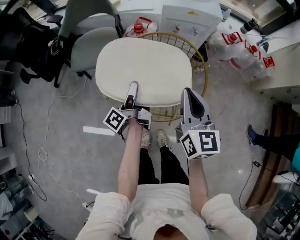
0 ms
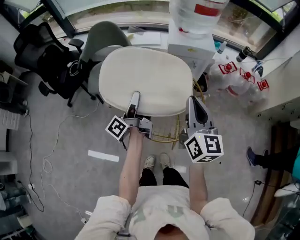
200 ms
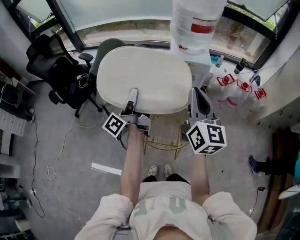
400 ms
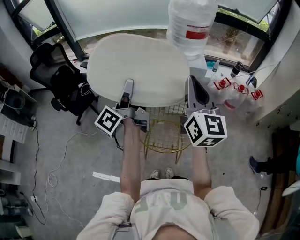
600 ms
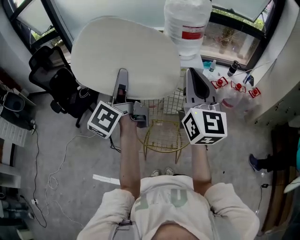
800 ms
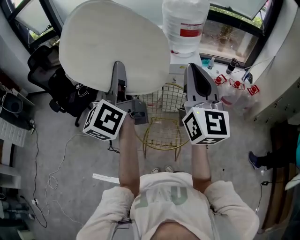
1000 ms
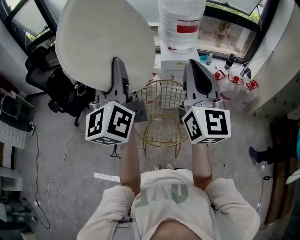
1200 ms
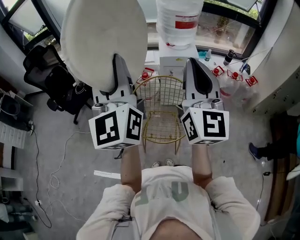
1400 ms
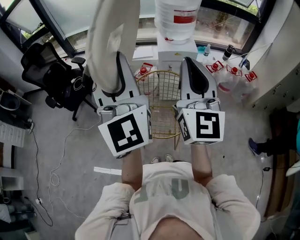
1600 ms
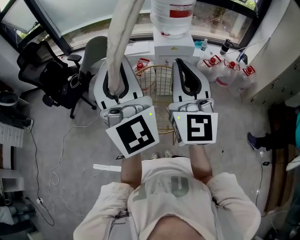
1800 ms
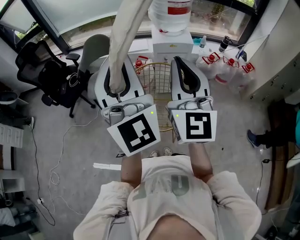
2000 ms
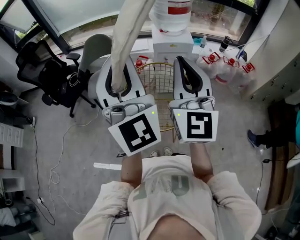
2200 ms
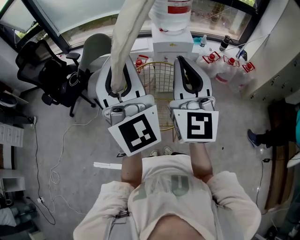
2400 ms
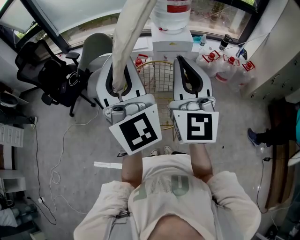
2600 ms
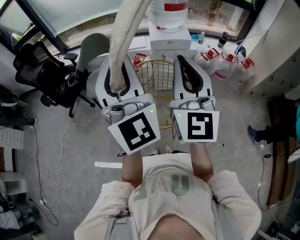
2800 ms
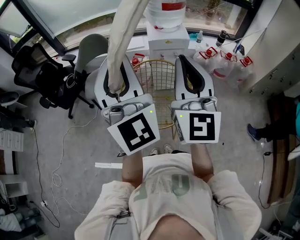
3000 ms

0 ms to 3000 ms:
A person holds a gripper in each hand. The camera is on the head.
0 ms to 1600 ms: The grippers both shift upward by roughly 40 cm. The left gripper rotates around the line of its fingers by roughly 100 degrees, clockwise from behind. The right gripper angles its fingers upward, by about 30 degrees.
1600 ms to 3000 ms: There are only small adjustments of the grippers.

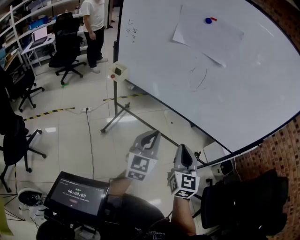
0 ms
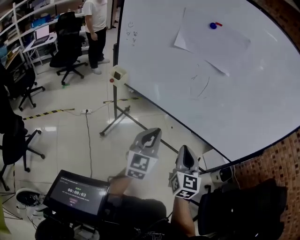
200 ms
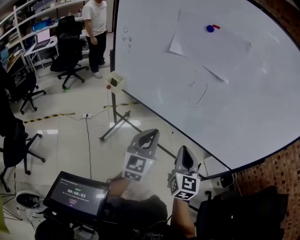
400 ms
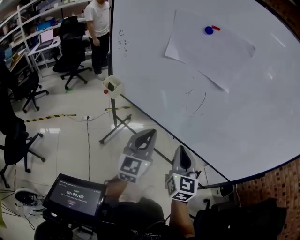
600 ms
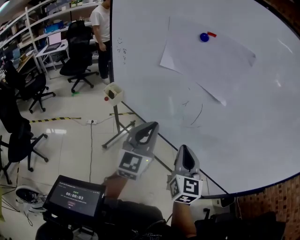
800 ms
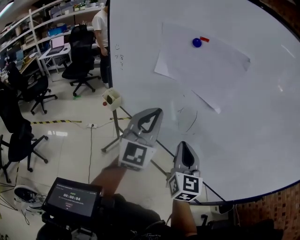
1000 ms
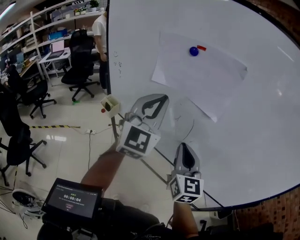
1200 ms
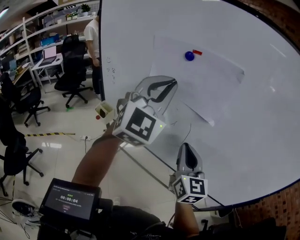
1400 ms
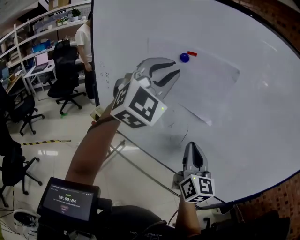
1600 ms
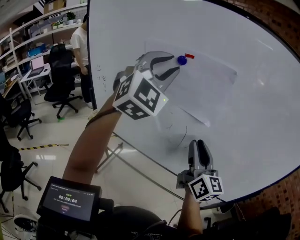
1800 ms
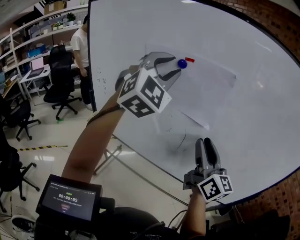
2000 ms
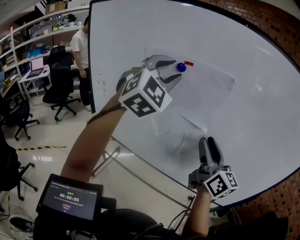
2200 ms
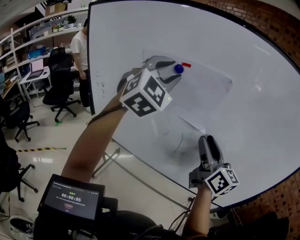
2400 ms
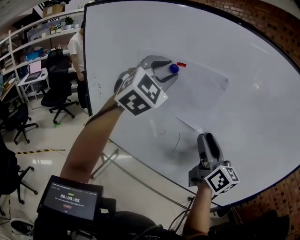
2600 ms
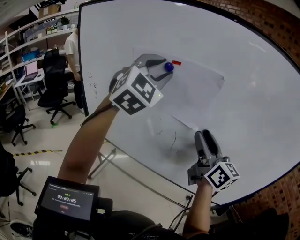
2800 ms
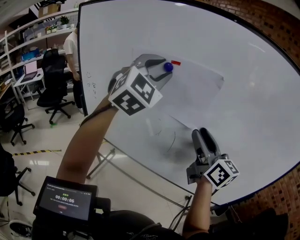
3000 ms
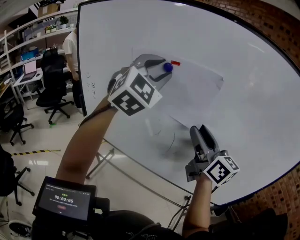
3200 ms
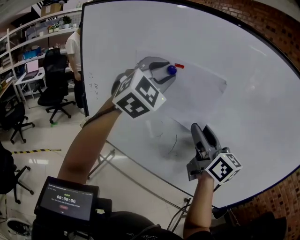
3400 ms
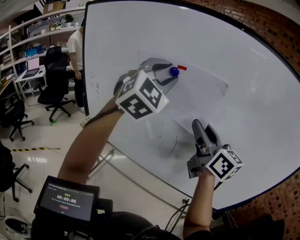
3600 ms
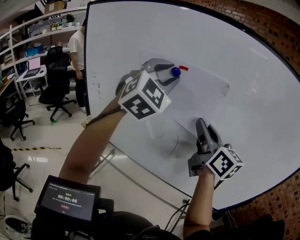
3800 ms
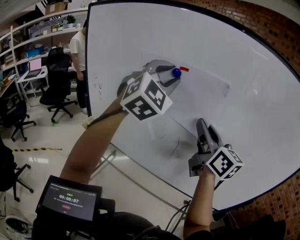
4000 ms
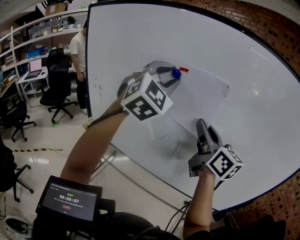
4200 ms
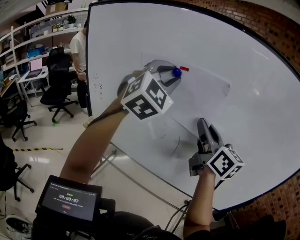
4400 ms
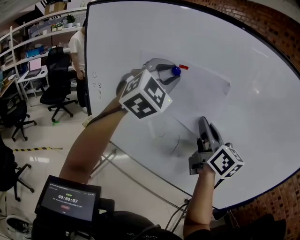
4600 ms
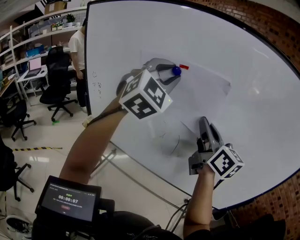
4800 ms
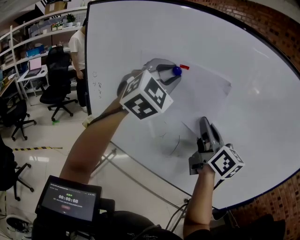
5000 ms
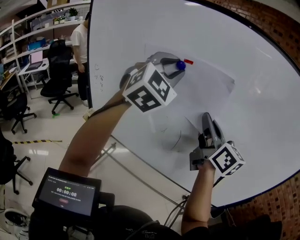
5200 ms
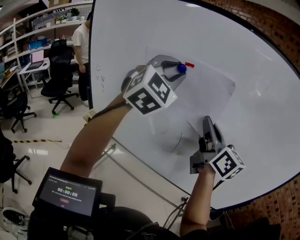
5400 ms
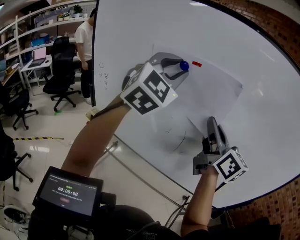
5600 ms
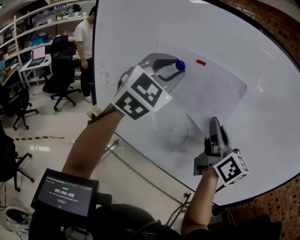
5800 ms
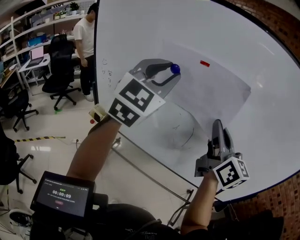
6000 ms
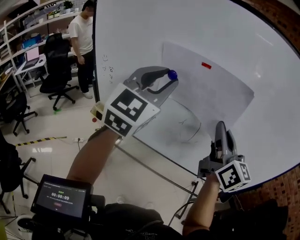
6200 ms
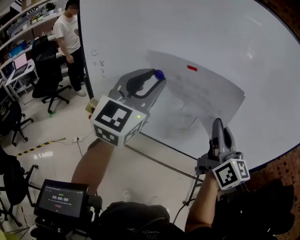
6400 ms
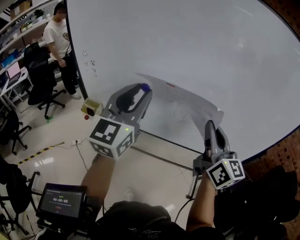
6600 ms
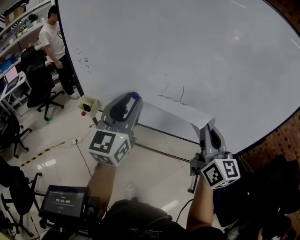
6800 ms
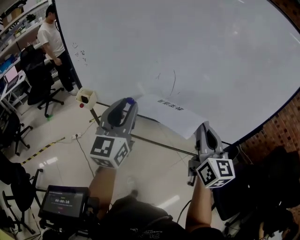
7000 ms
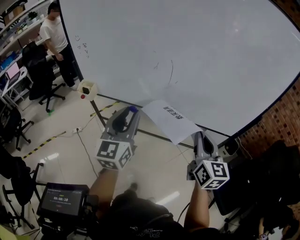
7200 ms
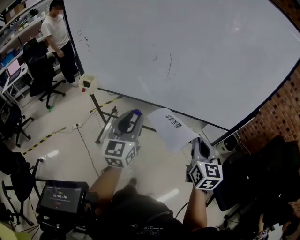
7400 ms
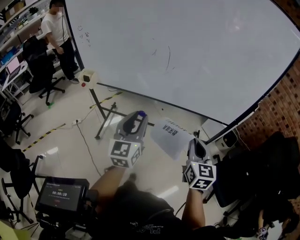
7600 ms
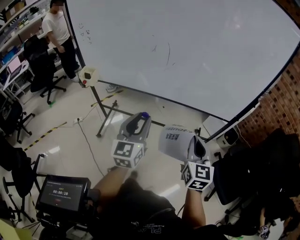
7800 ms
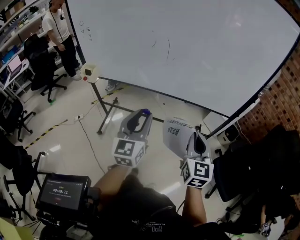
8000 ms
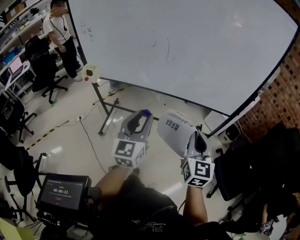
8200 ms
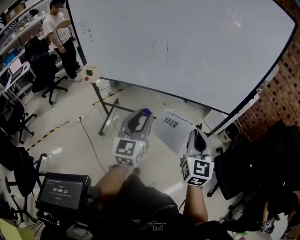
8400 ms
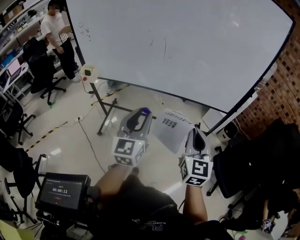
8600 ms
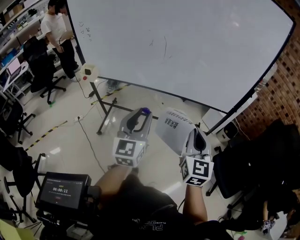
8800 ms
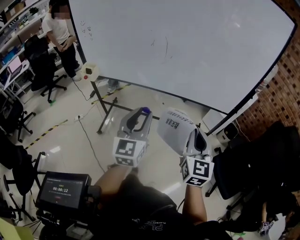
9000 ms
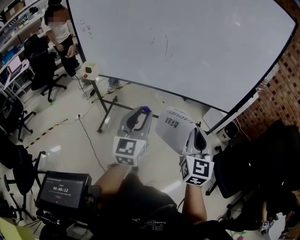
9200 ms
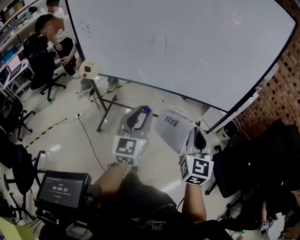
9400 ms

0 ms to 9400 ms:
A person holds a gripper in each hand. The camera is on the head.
0 ms to 1600 ms: The left gripper goes approximately 50 cm upward and forward, and rotates around the line of its fingers by about 50 degrees, clockwise from behind. Meanwhile the right gripper is displaced forward and upward by about 35 cm, and changes its angle by some 20 degrees.
1600 ms to 3200 ms: The right gripper shifts approximately 10 cm upward, and opens up.
3200 ms to 4800 ms: The right gripper closes up.
4800 ms to 6200 ms: The right gripper heads backward, covering approximately 5 cm; the left gripper heads to the left, downward and backward, covering about 10 cm, and rotates about 30 degrees.
6200 ms to 7800 ms: The right gripper goes roughly 40 cm backward and downward, and rotates roughly 40 degrees; the left gripper shifts about 40 cm downward and backward, and changes its angle by approximately 30 degrees.
7800 ms to 9400 ms: There are only small adjustments of the grippers.

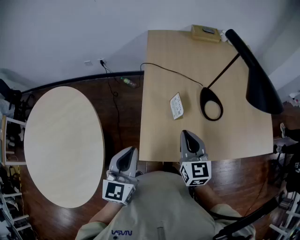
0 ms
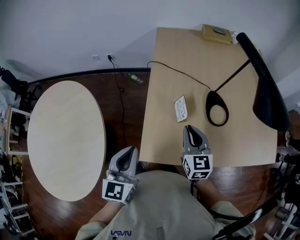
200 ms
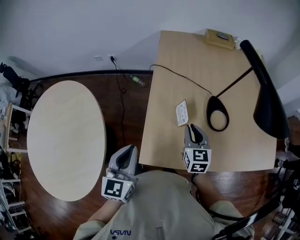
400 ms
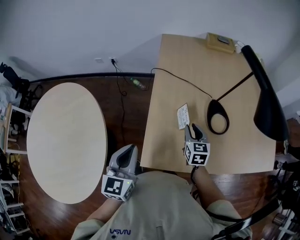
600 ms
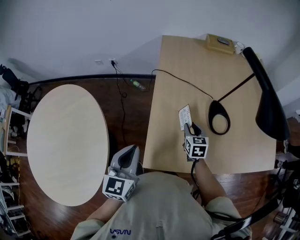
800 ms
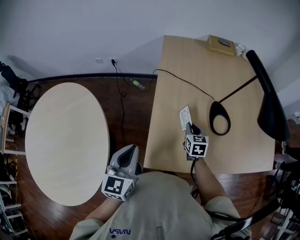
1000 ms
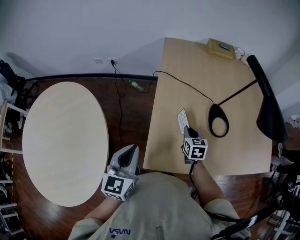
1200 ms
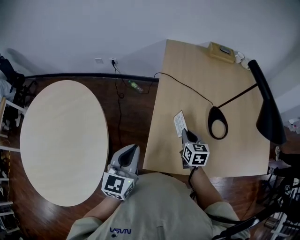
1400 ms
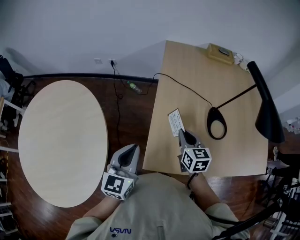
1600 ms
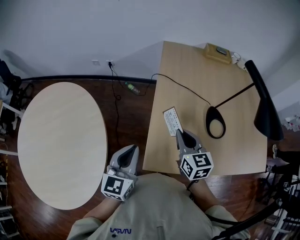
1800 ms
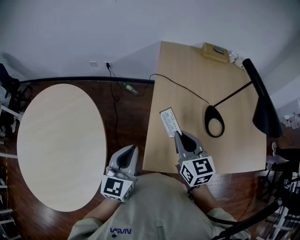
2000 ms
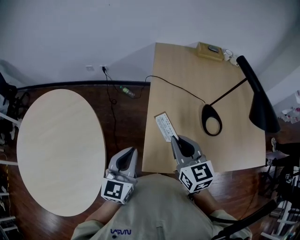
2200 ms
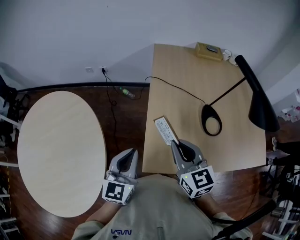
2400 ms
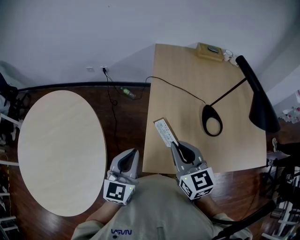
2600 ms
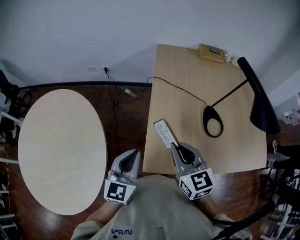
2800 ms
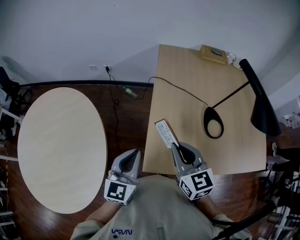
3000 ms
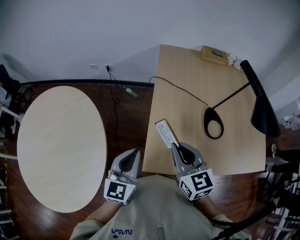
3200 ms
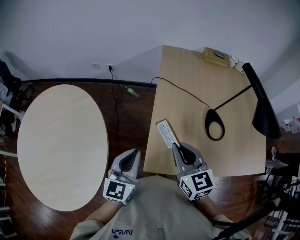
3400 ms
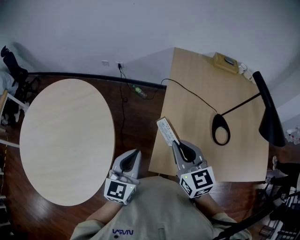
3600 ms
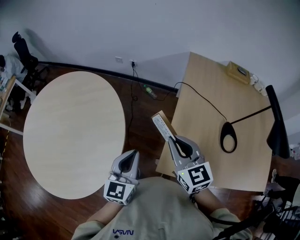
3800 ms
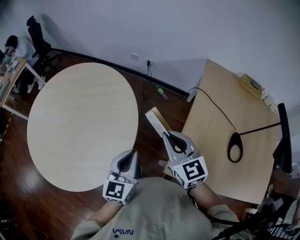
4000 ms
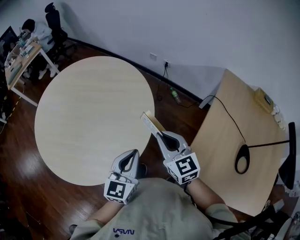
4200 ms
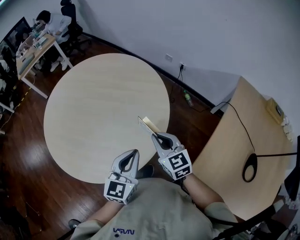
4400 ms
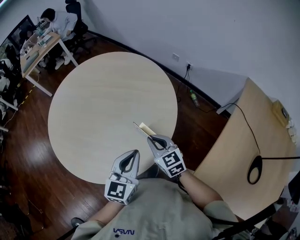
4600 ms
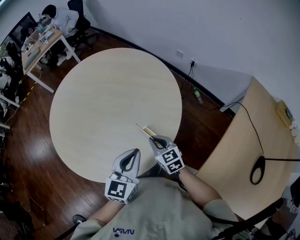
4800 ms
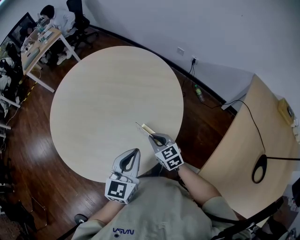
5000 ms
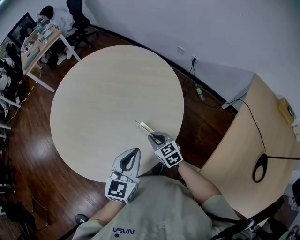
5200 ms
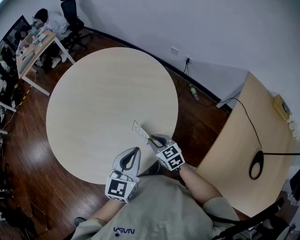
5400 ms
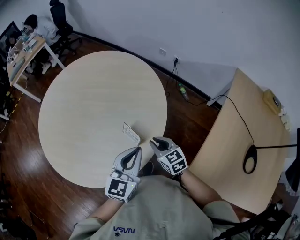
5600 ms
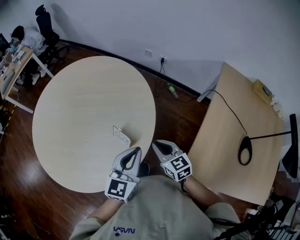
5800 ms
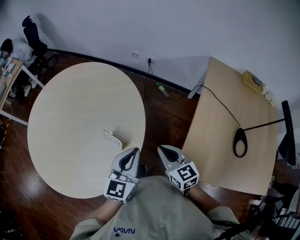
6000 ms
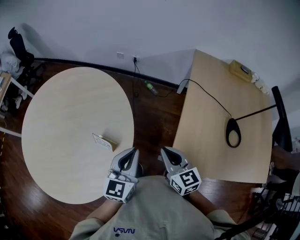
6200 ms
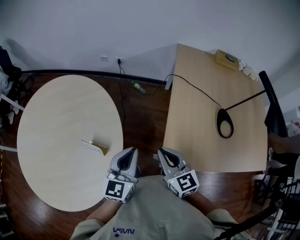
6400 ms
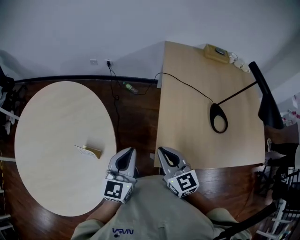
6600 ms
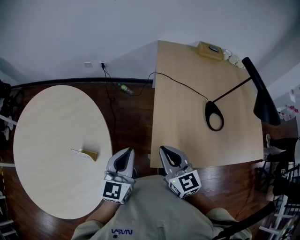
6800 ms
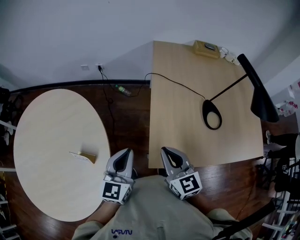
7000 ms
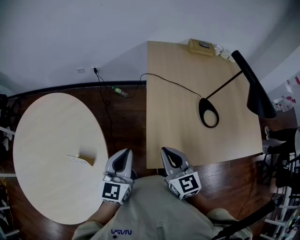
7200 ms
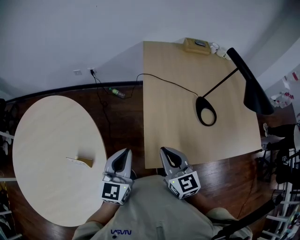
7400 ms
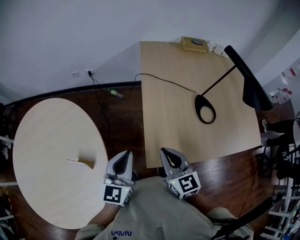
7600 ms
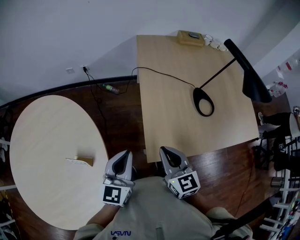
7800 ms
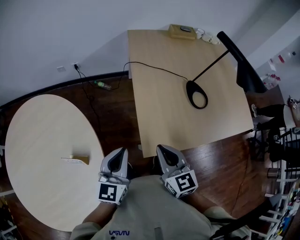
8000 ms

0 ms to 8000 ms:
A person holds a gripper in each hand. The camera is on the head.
0 ms to 1600 ms: The left gripper shifts about 5 cm to the left. Meanwhile the right gripper is displaced forward and to the left by some 10 cm, reaches roughly 15 cm downward, then returns, and opens and closes again.
1600 ms to 3200 ms: The right gripper heads upward and backward, covering approximately 15 cm.
3200 ms to 4800 ms: The right gripper ends up some 50 cm from where it was, and turns by roughly 50 degrees. Meanwhile the left gripper shifts by approximately 35 cm, and turns by approximately 40 degrees.
4800 ms to 6400 ms: The right gripper shifts by about 30 cm, and changes its angle by some 40 degrees, while the left gripper changes place by some 20 cm, and turns by approximately 30 degrees.
6400 ms to 8000 ms: Both grippers move to the right, some 10 cm. The right gripper turns by roughly 20 degrees.

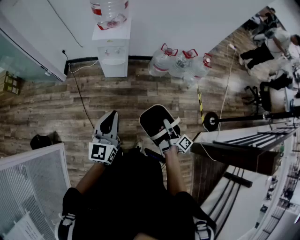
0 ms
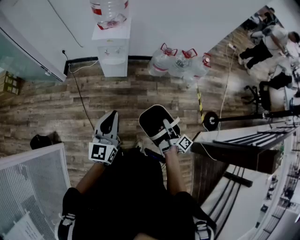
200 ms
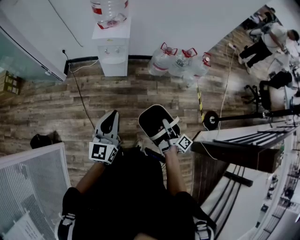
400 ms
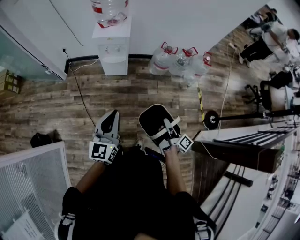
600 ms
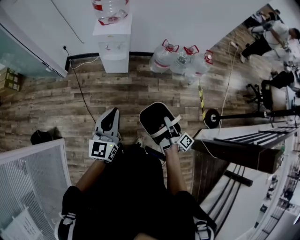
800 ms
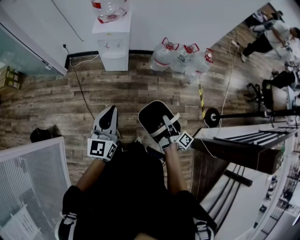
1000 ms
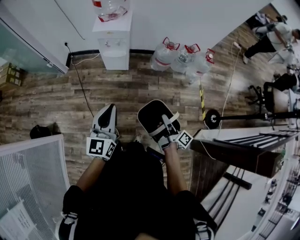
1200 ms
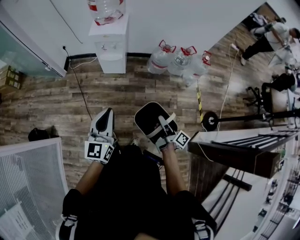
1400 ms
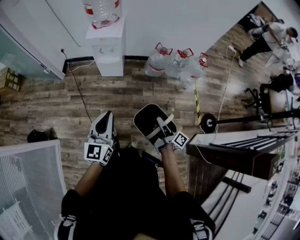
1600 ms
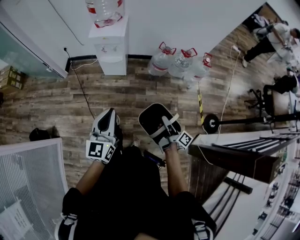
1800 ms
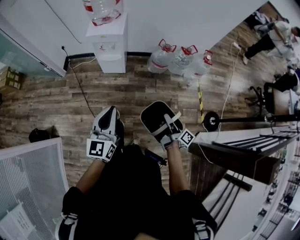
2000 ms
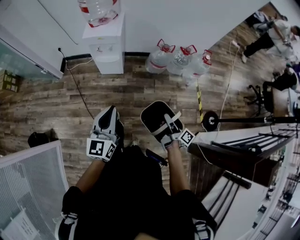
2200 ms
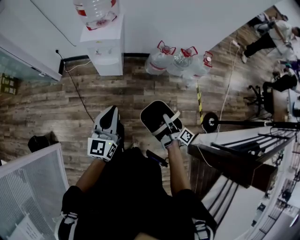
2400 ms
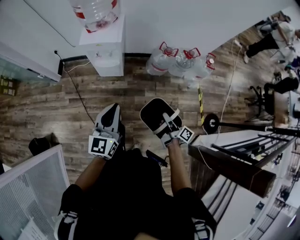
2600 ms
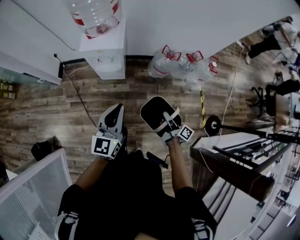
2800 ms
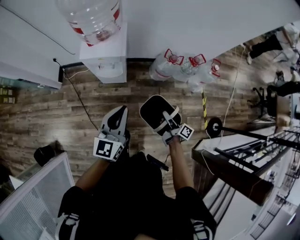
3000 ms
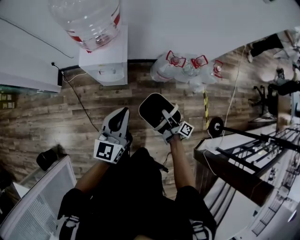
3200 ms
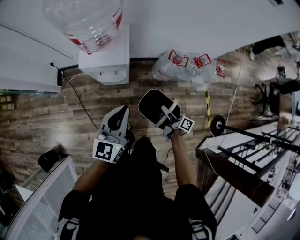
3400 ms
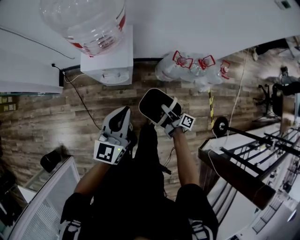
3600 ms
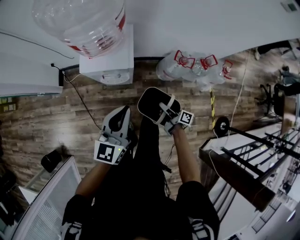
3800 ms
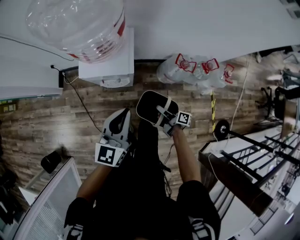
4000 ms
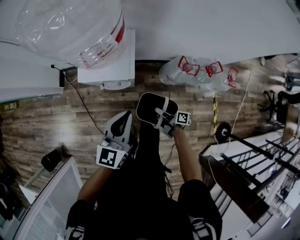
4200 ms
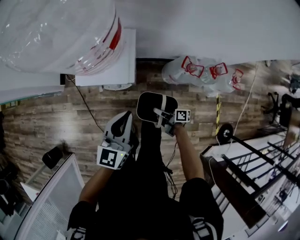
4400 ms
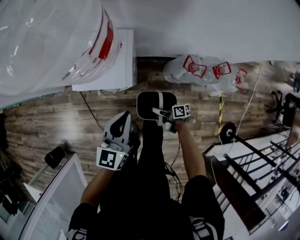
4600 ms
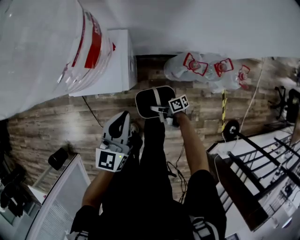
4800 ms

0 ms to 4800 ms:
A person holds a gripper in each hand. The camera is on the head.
0 ms to 1600 ms: The left gripper shifts by roughly 5 cm.
1600 ms to 3200 ms: The left gripper shifts by about 35 cm.
3200 ms to 4800 ms: The left gripper shifts by roughly 25 cm.
